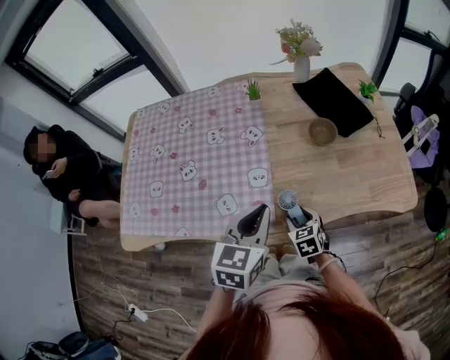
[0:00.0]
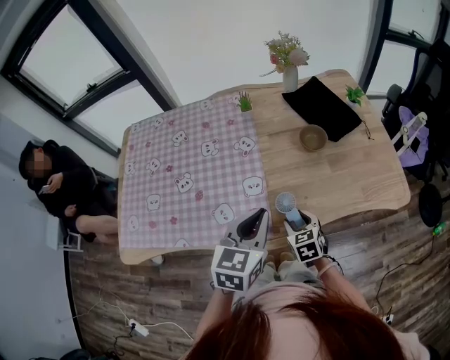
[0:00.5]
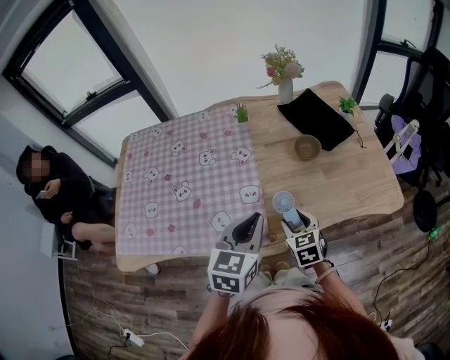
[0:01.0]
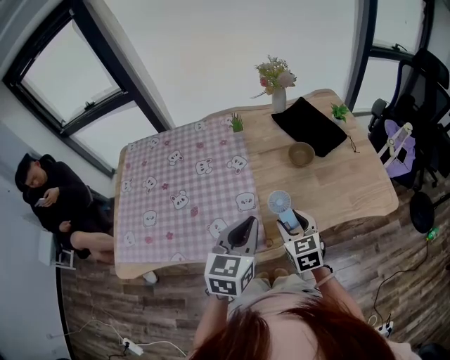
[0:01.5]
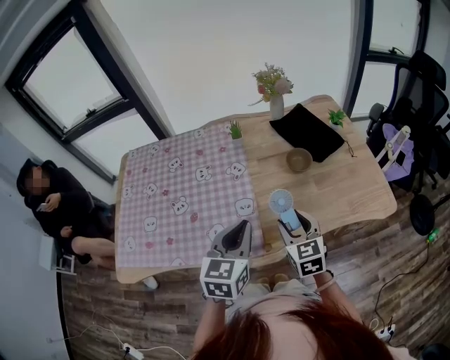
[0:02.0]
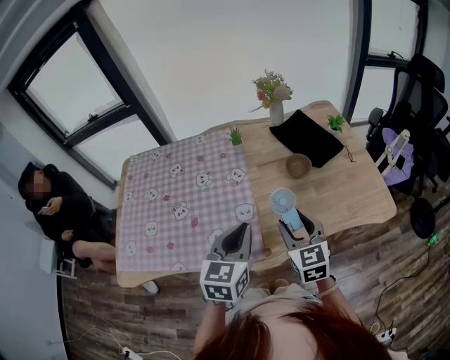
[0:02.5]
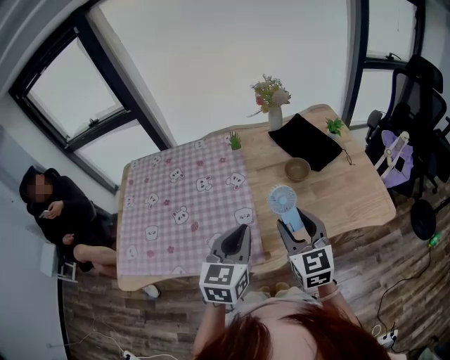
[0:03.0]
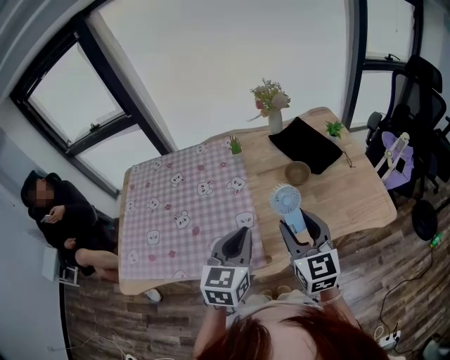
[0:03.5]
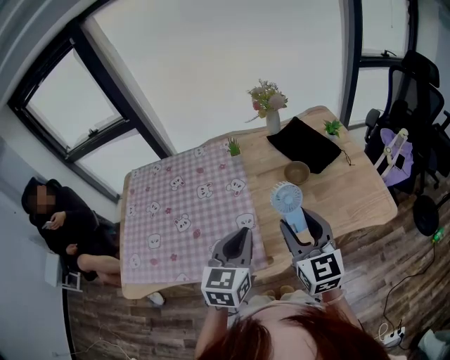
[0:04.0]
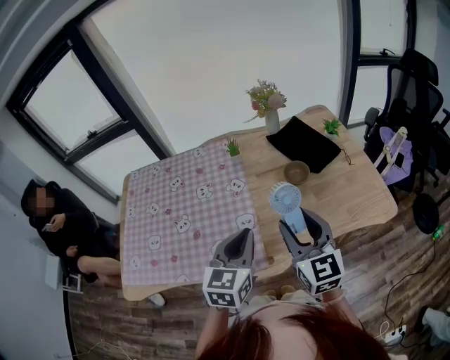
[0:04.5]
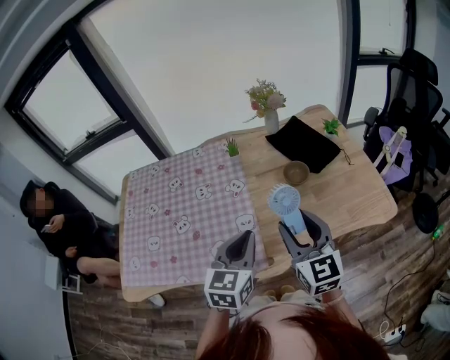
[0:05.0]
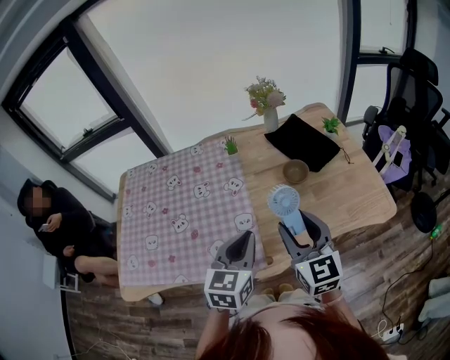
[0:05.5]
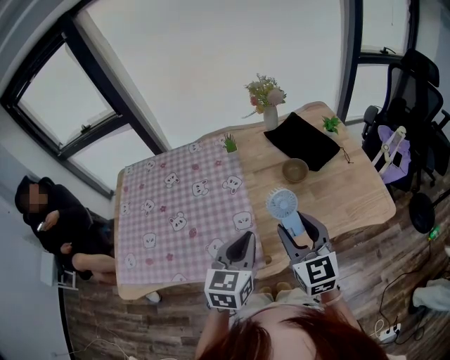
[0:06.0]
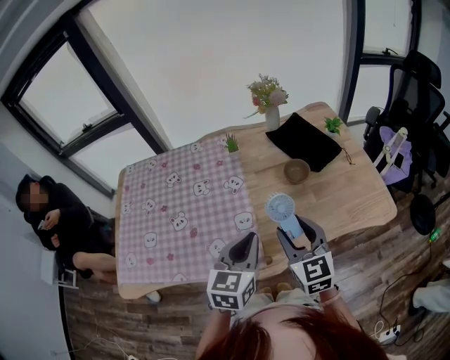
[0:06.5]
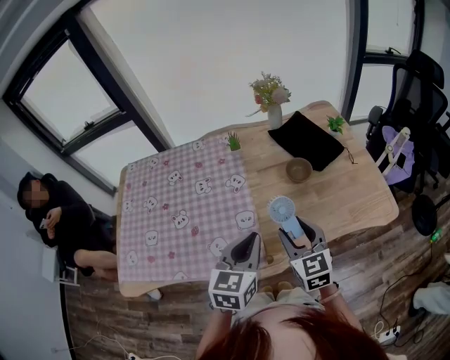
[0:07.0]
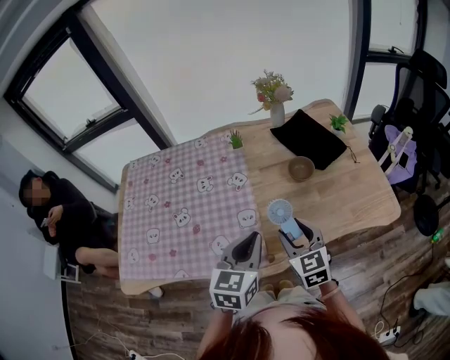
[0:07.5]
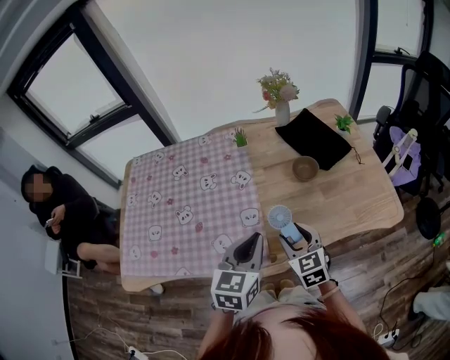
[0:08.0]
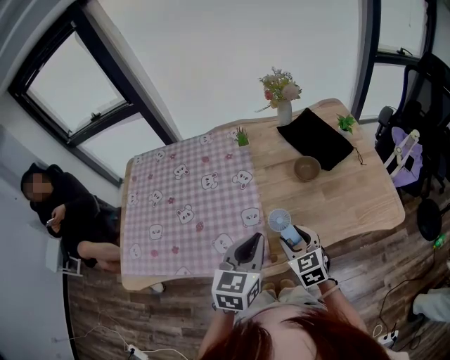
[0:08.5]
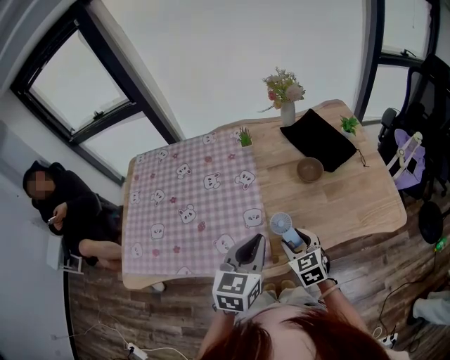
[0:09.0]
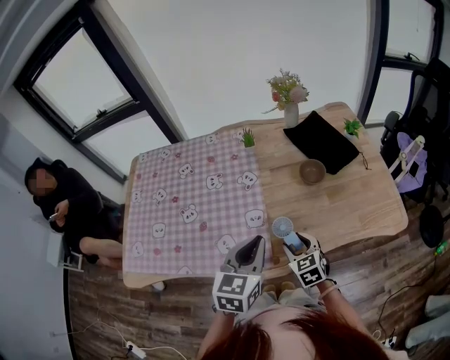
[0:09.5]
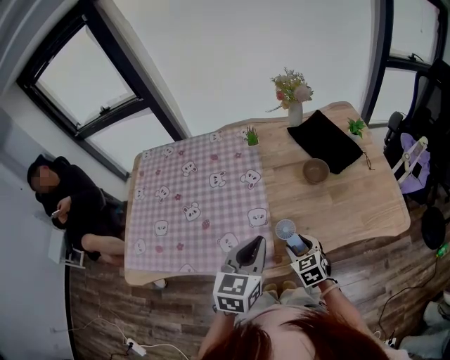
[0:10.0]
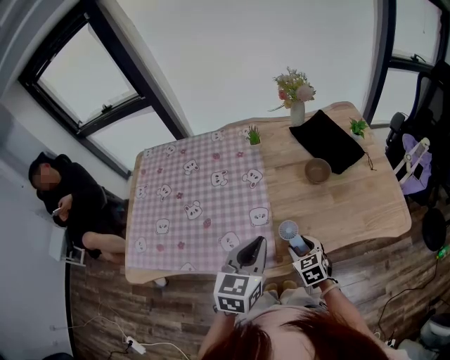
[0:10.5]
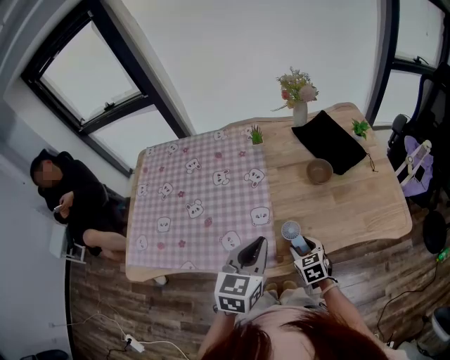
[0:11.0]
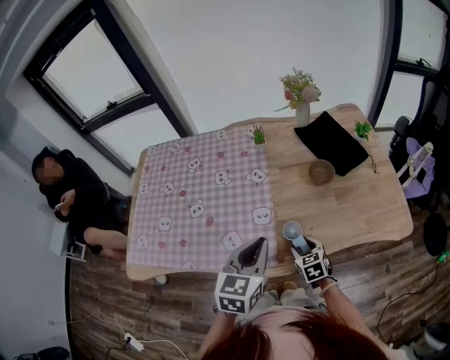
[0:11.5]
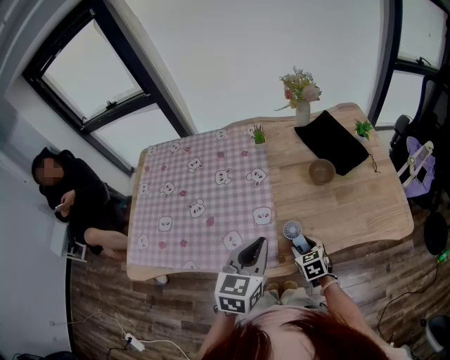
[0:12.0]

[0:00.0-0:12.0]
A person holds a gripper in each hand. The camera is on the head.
0:00.0 to 0:02.0: The right gripper travels upward by about 20 cm, and changes its angle by about 30 degrees.
0:02.0 to 0:04.0: The right gripper travels upward by roughly 15 cm, and swivels approximately 20 degrees.
0:04.0 to 0:06.0: There are only small adjustments of the grippers.
0:06.0 to 0:08.0: The right gripper travels downward by approximately 15 cm.
0:08.0 to 0:10.0: The right gripper is displaced downward by roughly 10 cm.
0:10.0 to 0:12.0: The right gripper heads downward, covering about 5 cm.

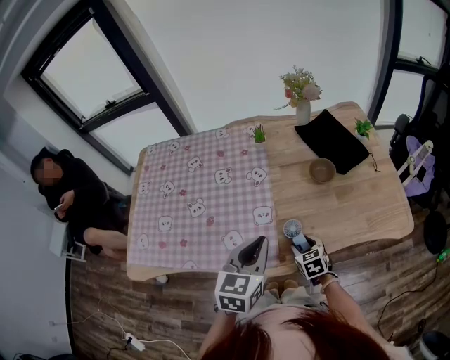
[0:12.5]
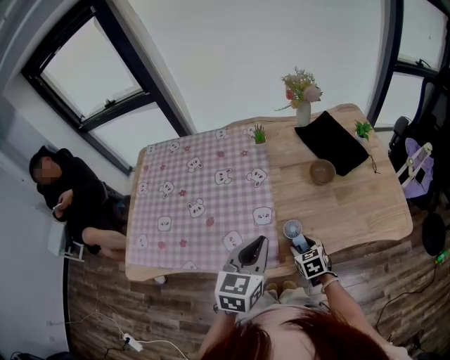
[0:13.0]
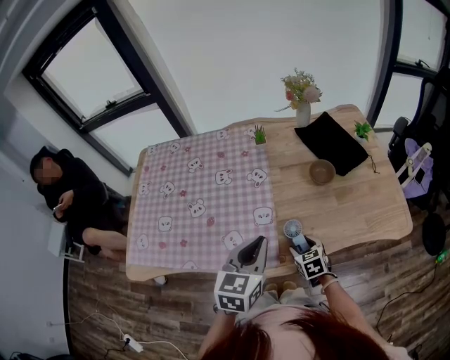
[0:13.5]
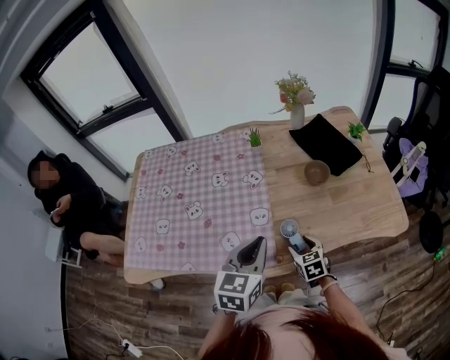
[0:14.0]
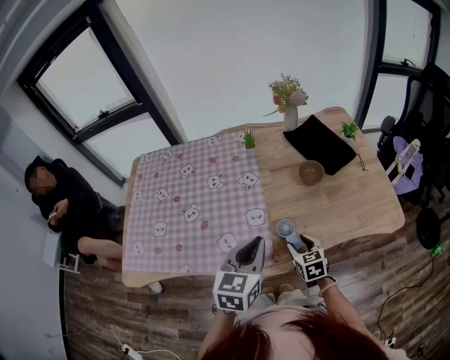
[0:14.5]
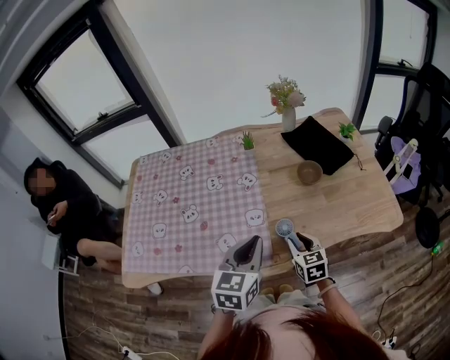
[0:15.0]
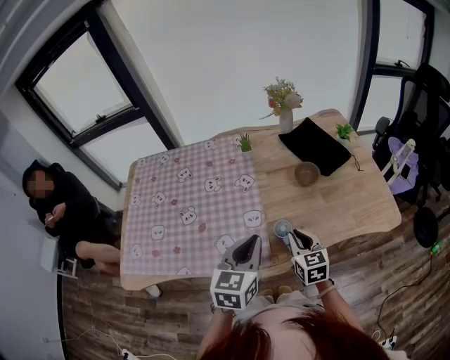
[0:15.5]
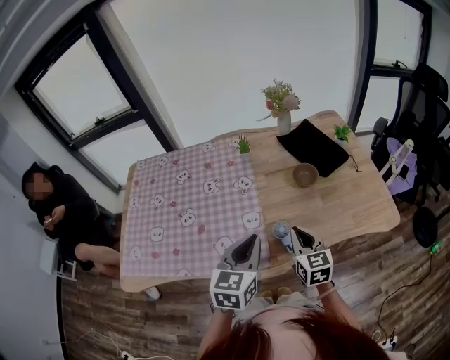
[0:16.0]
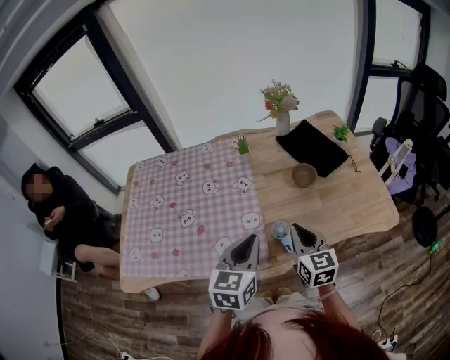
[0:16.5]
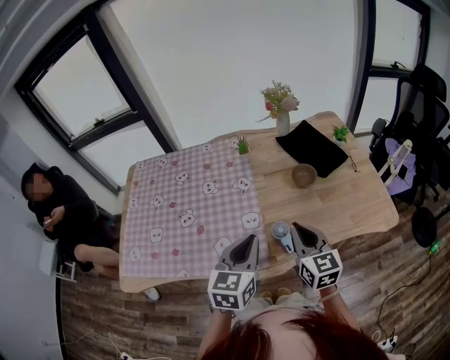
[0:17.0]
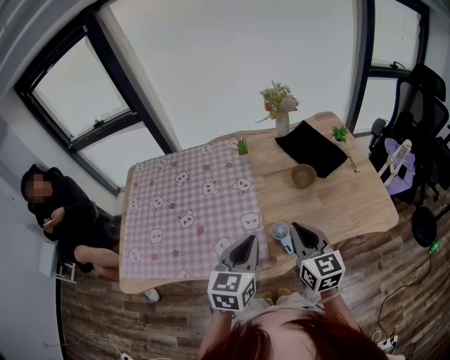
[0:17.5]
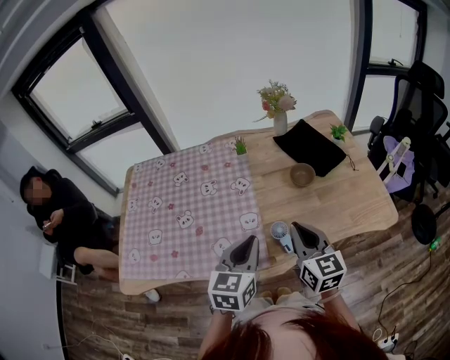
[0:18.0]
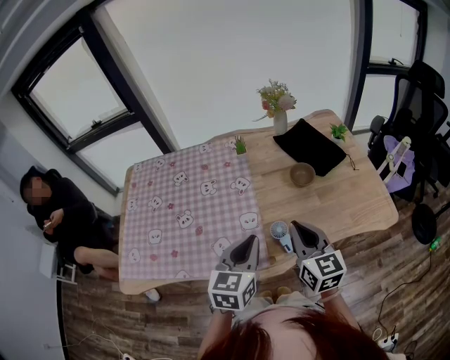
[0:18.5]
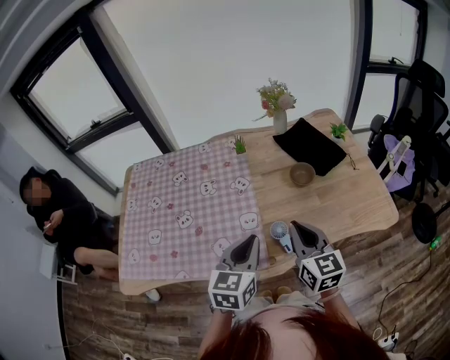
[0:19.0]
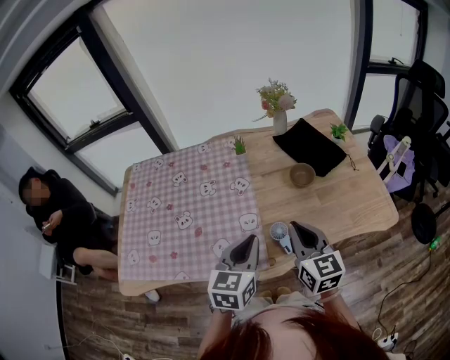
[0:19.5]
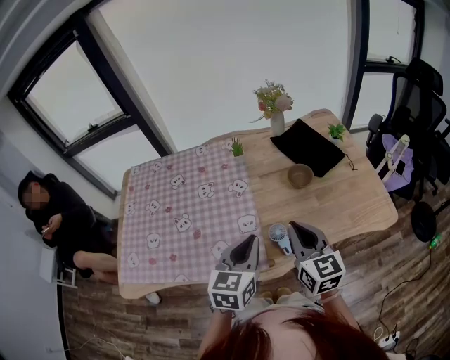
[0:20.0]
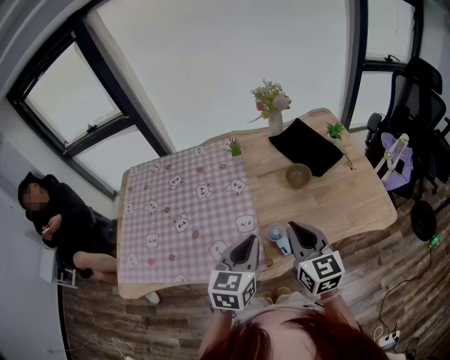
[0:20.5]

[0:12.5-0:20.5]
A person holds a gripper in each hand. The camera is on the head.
0:12.5 to 0:14.5: The right gripper travels upward by some 5 cm.
0:14.5 to 0:16.5: The right gripper is displaced upward by some 15 cm, turns by approximately 20 degrees, and closes.
0:16.5 to 0:18.5: The right gripper is displaced upward by roughly 5 cm.
0:18.5 to 0:20.5: There are only small adjustments of the grippers.

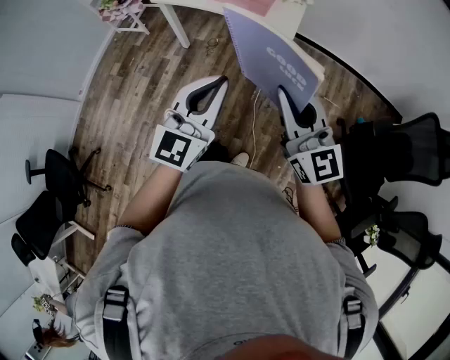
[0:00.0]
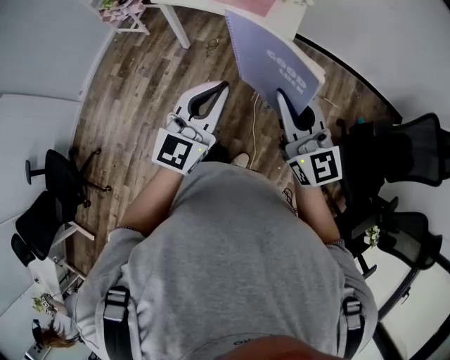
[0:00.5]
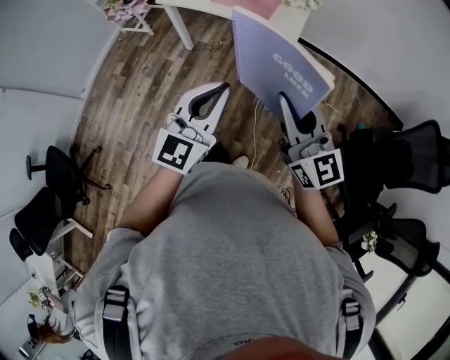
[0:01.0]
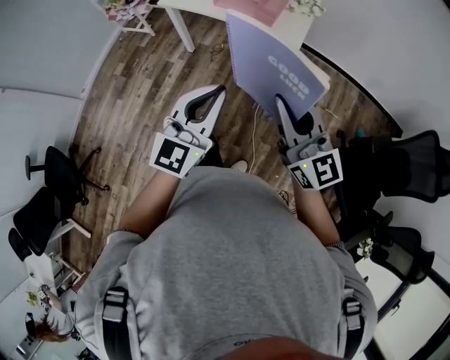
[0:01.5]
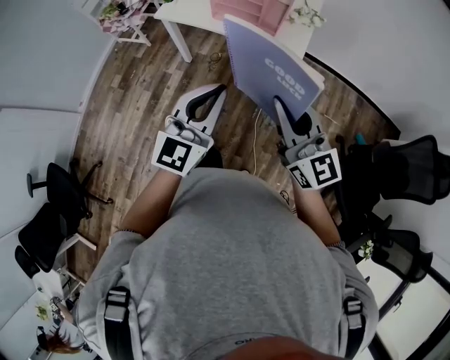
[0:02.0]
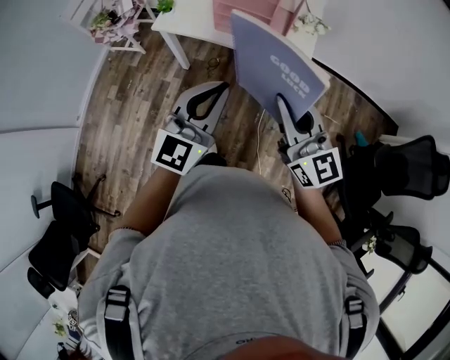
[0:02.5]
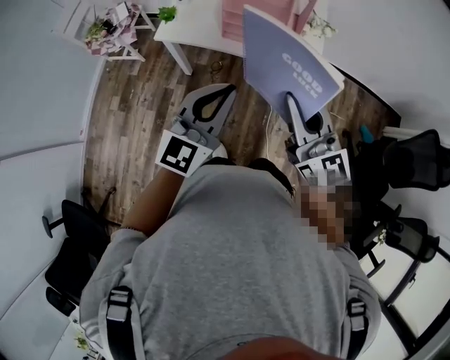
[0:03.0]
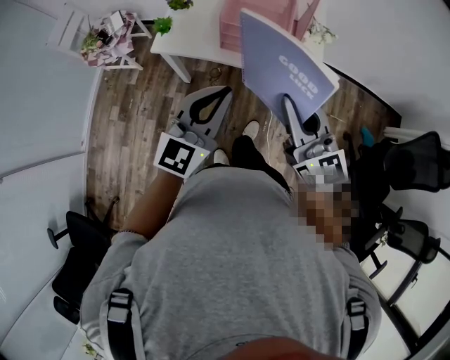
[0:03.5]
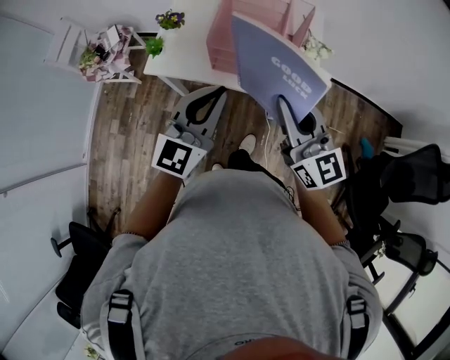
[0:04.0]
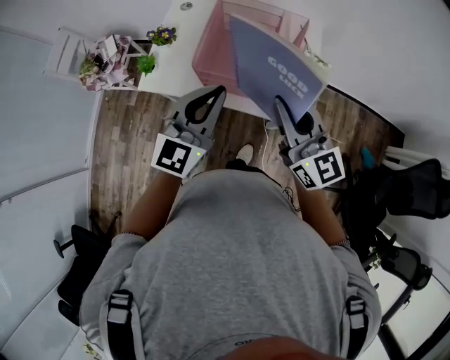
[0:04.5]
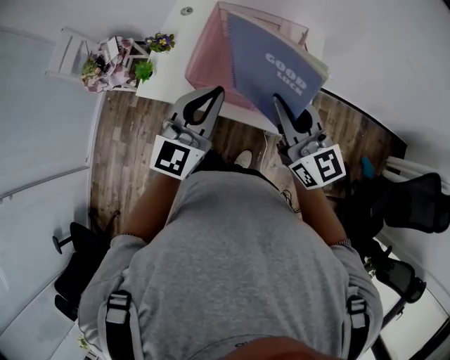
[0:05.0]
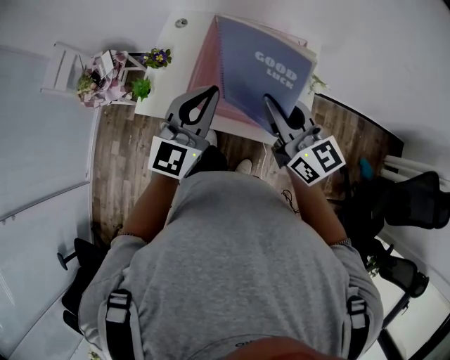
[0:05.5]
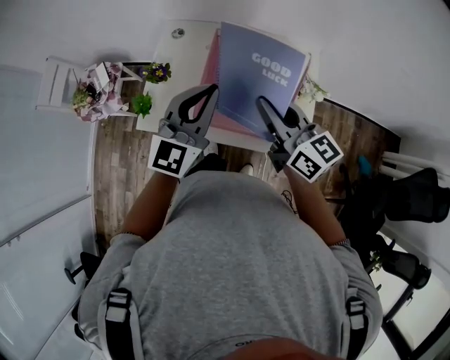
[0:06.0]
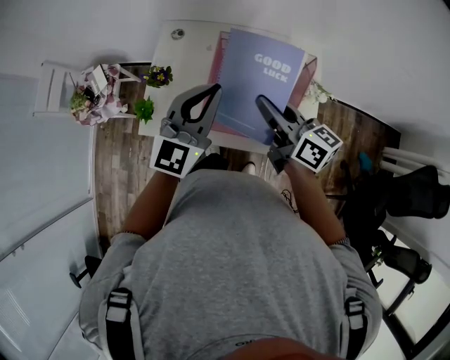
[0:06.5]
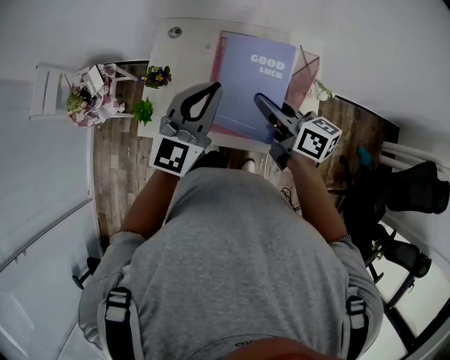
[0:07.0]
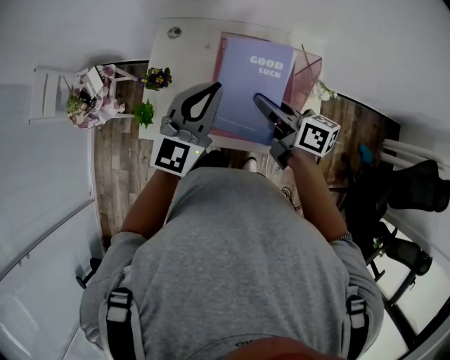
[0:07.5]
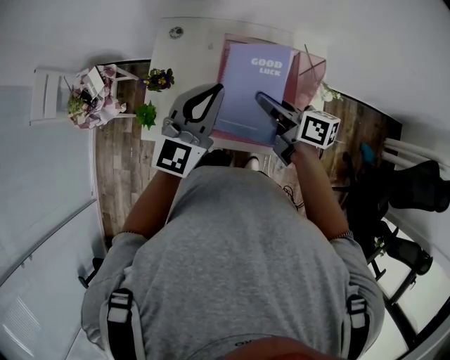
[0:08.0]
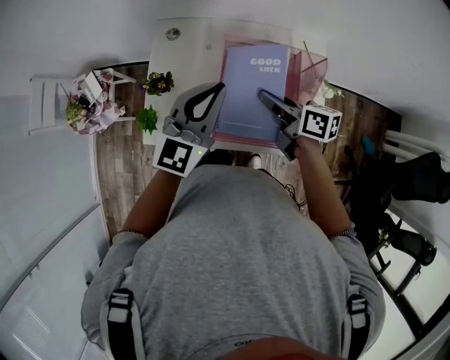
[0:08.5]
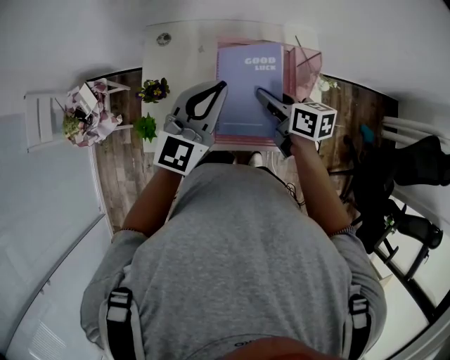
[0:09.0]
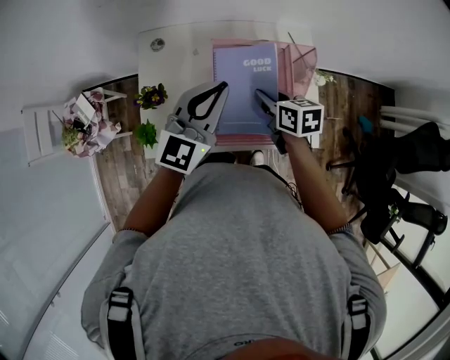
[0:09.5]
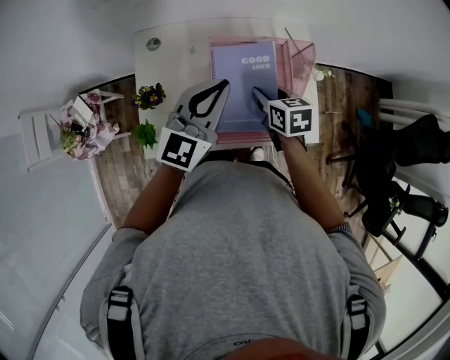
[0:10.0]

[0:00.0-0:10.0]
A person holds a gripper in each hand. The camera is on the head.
0:00.0 to 0:02.0: The grippers both shift forward by some 10 cm.
0:02.0 to 0:04.0: The two grippers go some 30 cm forward.
0:04.0 to 0:06.0: Both grippers travel together forward, about 25 cm. The right gripper changes its angle by about 20 degrees.
0:06.0 to 0:08.0: The left gripper heads forward, covering some 5 cm. The right gripper moves downward and forward, about 10 cm, and swivels some 30 degrees.
0:08.0 to 0:10.0: The right gripper travels downward by about 10 cm, and tilts its fingers approximately 30 degrees downward.
